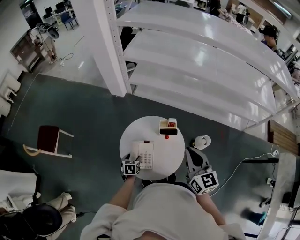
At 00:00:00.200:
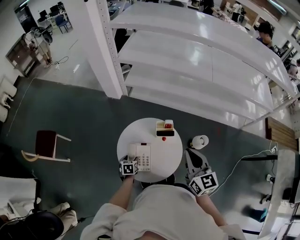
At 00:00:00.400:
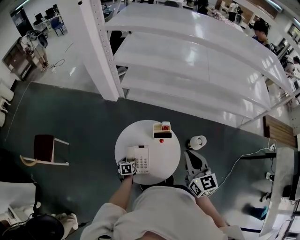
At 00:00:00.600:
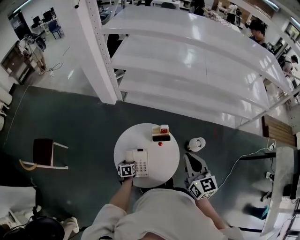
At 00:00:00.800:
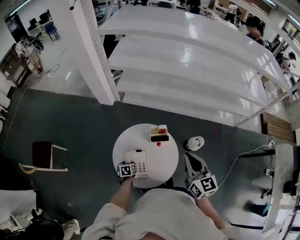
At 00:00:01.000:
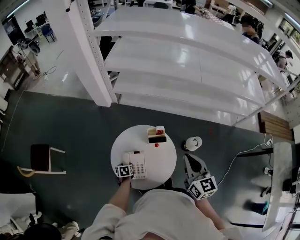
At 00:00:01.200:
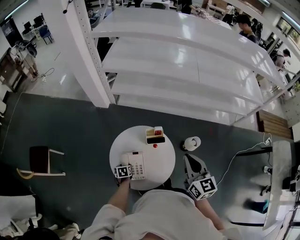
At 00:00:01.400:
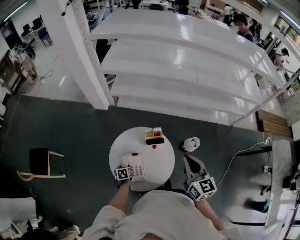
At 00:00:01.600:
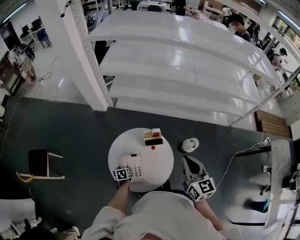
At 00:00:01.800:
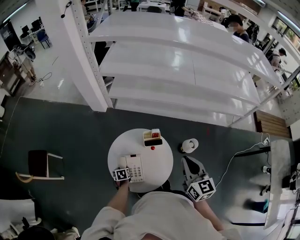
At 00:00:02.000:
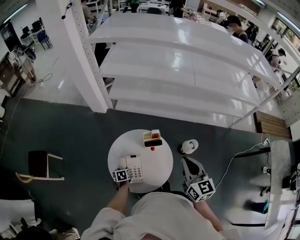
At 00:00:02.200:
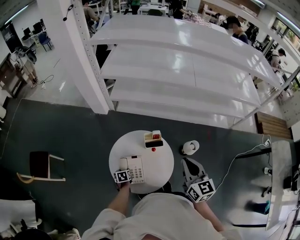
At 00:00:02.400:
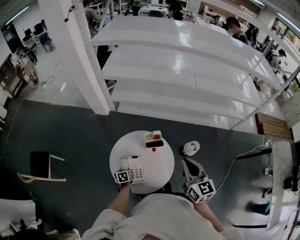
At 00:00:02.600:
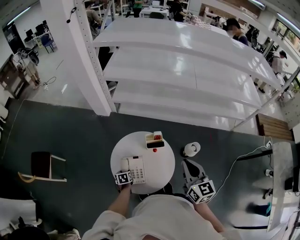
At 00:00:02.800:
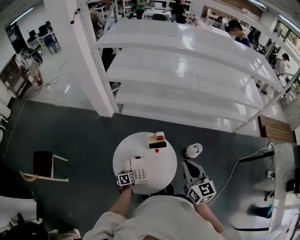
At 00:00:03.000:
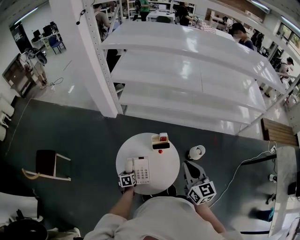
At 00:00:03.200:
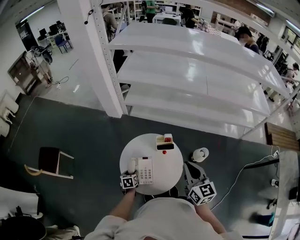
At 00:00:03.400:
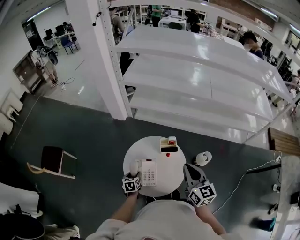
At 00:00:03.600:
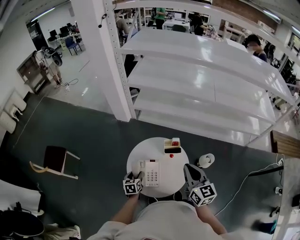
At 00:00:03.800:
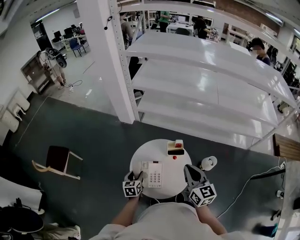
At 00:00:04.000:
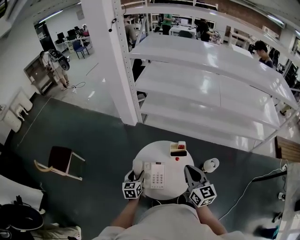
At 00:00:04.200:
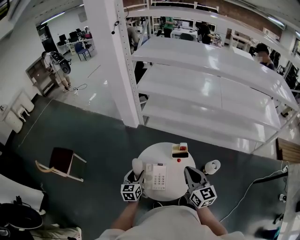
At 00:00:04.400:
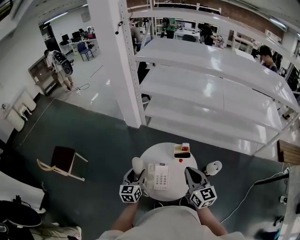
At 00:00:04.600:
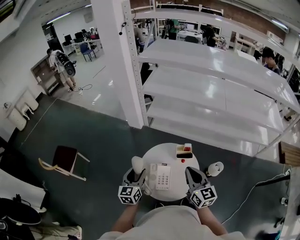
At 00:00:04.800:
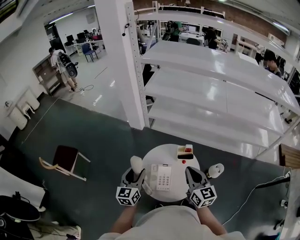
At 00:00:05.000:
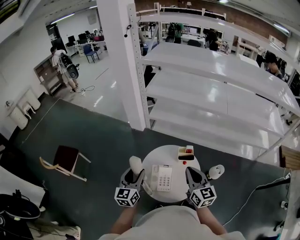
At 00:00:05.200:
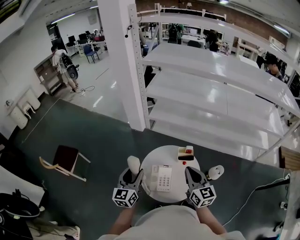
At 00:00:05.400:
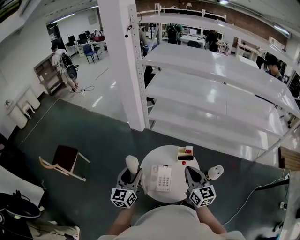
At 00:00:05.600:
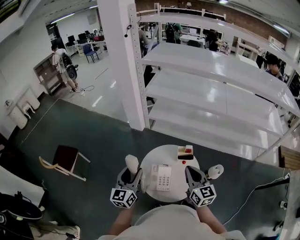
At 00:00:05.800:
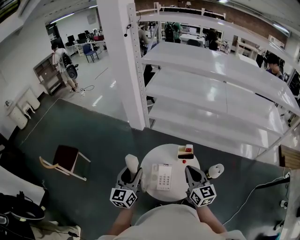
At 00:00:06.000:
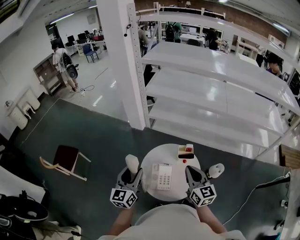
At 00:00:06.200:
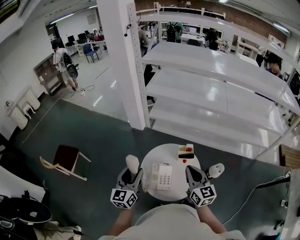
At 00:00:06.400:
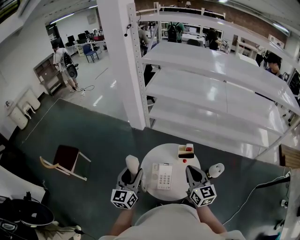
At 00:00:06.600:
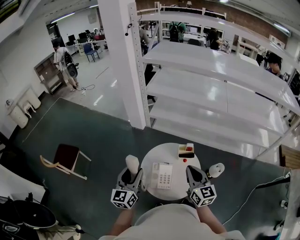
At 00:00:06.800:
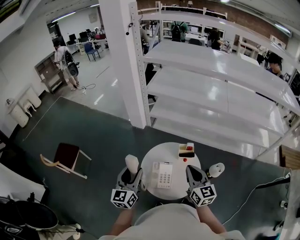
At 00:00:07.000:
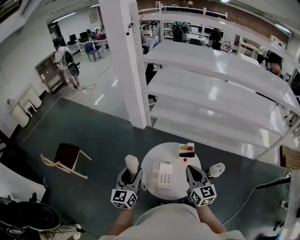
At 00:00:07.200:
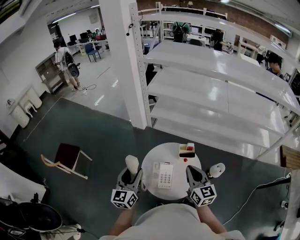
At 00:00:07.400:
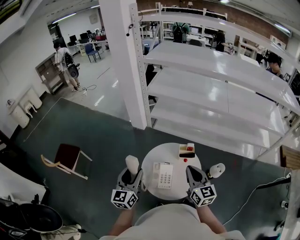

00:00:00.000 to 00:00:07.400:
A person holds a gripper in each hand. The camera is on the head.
00:00:00.000 to 00:00:01.400: The left gripper goes about 5 cm downward; the right gripper goes some 5 cm to the right.
00:00:01.400 to 00:00:03.000: The grippers move only a little.
00:00:03.000 to 00:00:04.400: The left gripper travels upward by about 25 cm, and tips its fingers upward by about 40 degrees, while the right gripper heads to the left, covering some 10 cm.
00:00:04.400 to 00:00:06.000: The left gripper heads upward, covering roughly 15 cm.
00:00:06.000 to 00:00:07.400: The grippers stay close to where they were, moving slightly.

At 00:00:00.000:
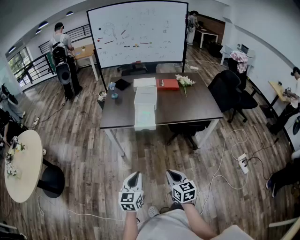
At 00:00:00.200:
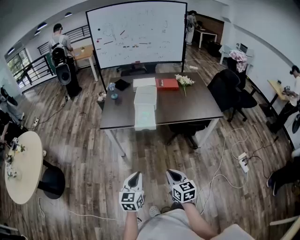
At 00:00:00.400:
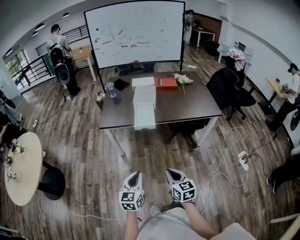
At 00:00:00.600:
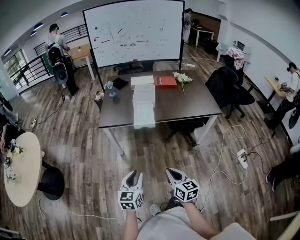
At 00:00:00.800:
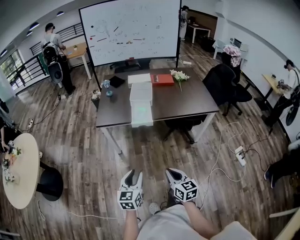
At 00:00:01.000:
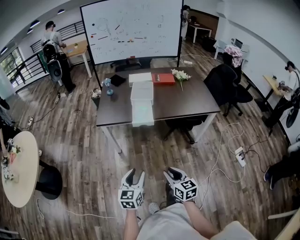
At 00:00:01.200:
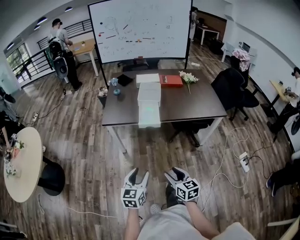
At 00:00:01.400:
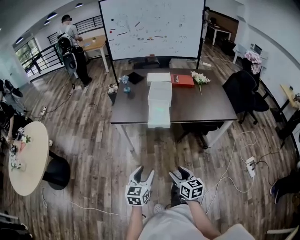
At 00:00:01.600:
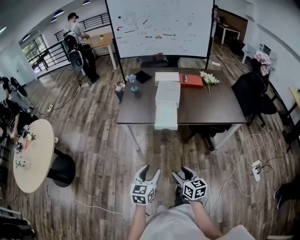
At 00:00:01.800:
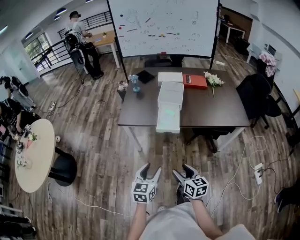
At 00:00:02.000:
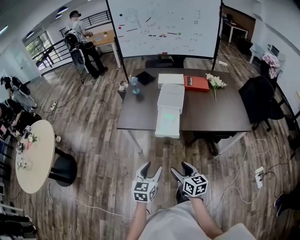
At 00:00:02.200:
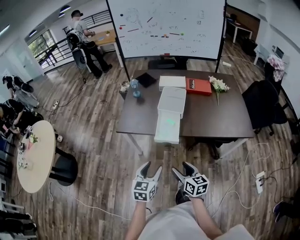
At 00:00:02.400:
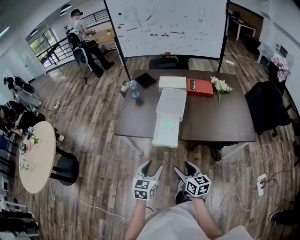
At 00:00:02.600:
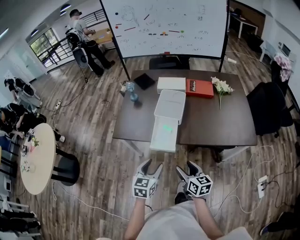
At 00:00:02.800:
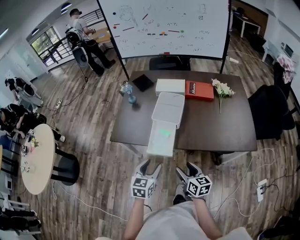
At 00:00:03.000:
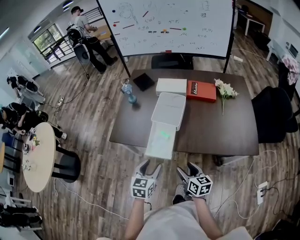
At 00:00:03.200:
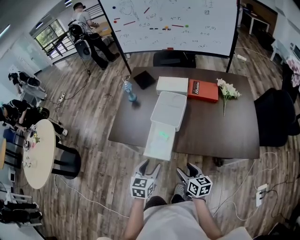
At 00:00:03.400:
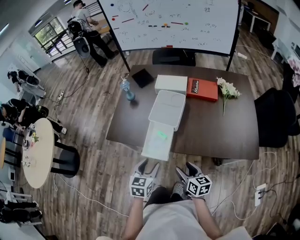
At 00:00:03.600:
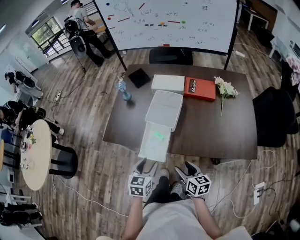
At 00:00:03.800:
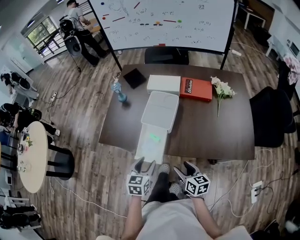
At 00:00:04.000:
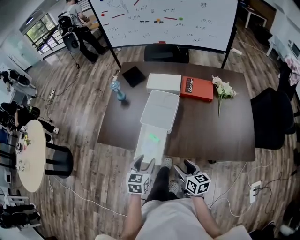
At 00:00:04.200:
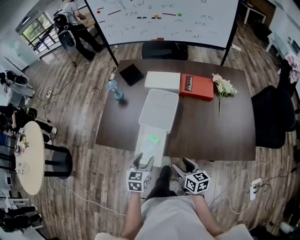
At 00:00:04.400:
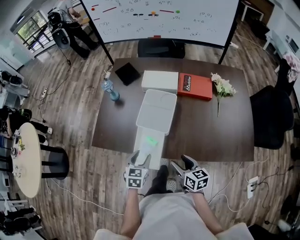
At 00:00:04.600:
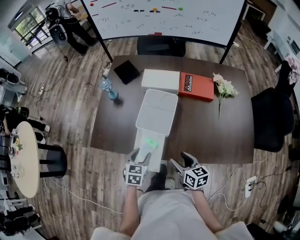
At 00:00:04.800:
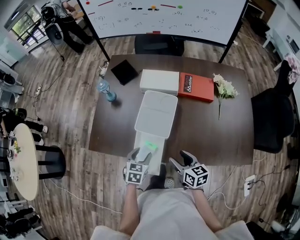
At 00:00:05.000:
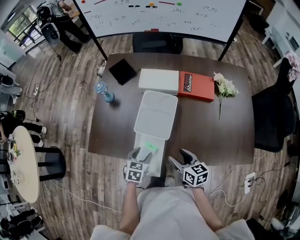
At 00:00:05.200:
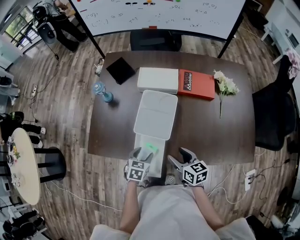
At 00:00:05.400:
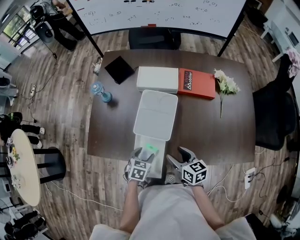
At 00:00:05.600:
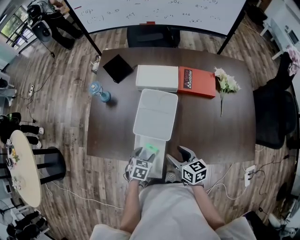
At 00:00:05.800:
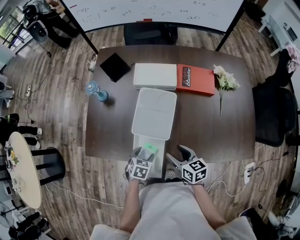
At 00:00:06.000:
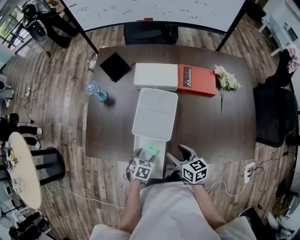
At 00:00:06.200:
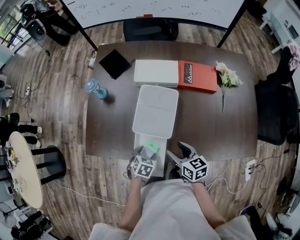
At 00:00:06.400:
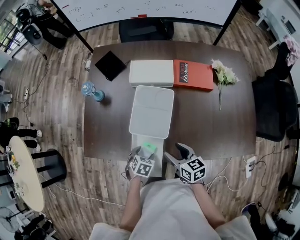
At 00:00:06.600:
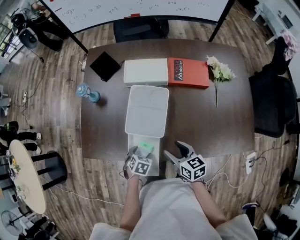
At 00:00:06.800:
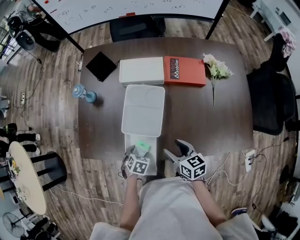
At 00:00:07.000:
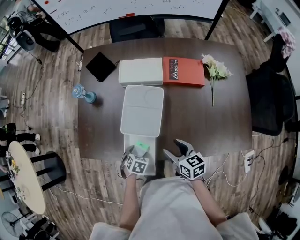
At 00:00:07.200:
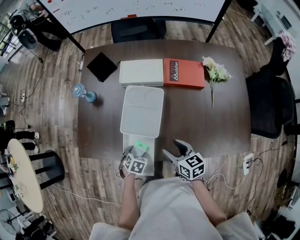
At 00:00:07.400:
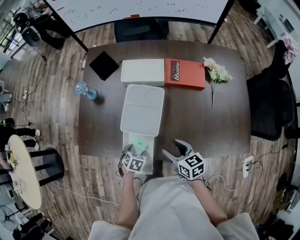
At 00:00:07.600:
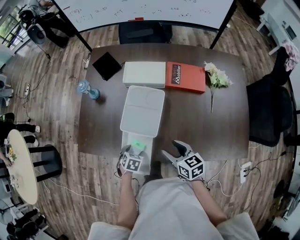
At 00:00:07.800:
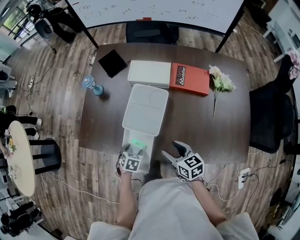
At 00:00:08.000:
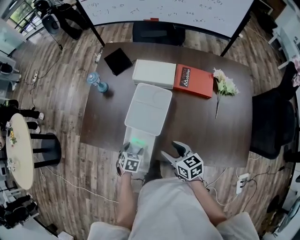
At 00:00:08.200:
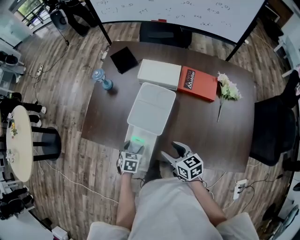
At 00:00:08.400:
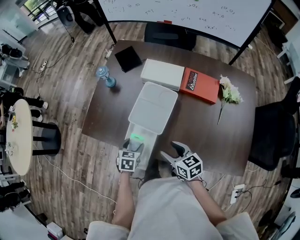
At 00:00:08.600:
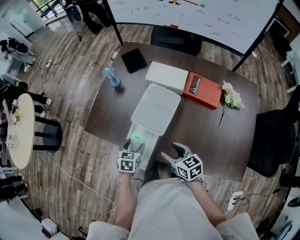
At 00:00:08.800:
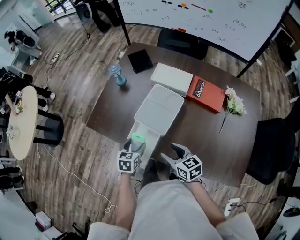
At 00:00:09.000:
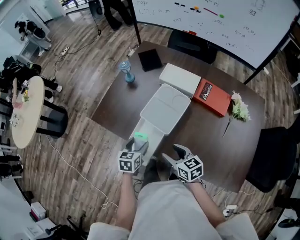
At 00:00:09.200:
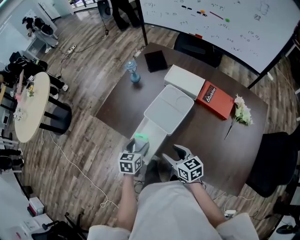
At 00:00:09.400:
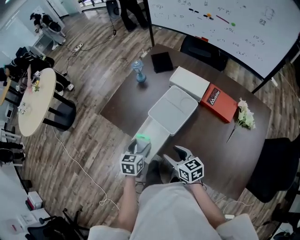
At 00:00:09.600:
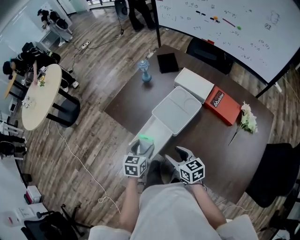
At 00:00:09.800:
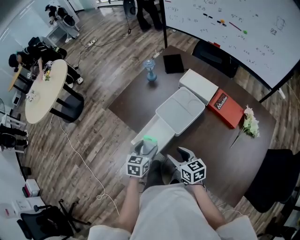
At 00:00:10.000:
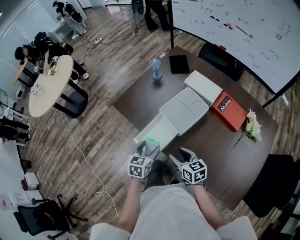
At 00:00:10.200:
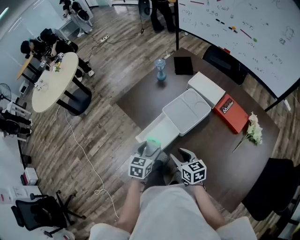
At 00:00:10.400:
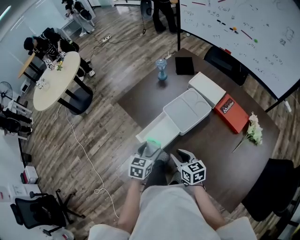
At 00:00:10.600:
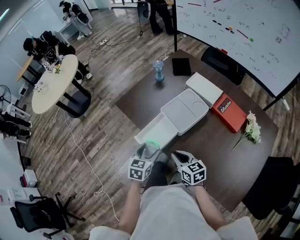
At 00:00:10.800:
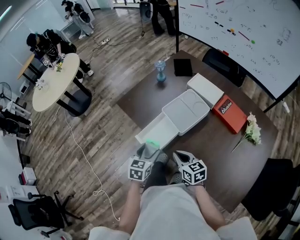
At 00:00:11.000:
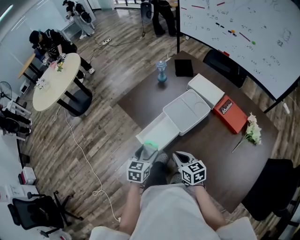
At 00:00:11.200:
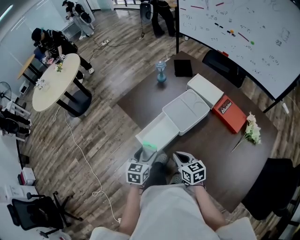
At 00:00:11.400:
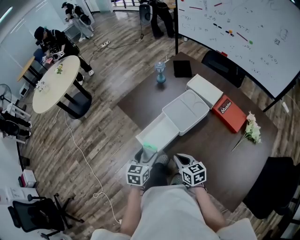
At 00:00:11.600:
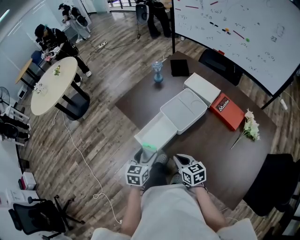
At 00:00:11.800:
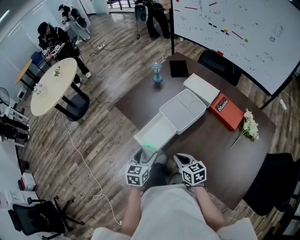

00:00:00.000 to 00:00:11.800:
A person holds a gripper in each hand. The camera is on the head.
00:00:00.000 to 00:00:01.400: The right gripper moves roughly 5 cm, and opens. Meanwhile the left gripper ends up approximately 5 cm from where it was, and opens up.
00:00:01.400 to 00:00:03.000: Both grippers move forward and to the right, approximately 35 cm.
00:00:03.000 to 00:00:04.400: The left gripper is displaced forward and downward by some 15 cm; the right gripper is displaced forward by roughly 10 cm.
00:00:04.400 to 00:00:06.000: The right gripper travels forward by some 10 cm; the left gripper shifts roughly 15 cm downward and forward, and turns by roughly 30 degrees.
00:00:06.000 to 00:00:07.400: The grippers stay close to where they were, moving slightly.
00:00:07.400 to 00:00:08.800: The left gripper goes roughly 10 cm upward, and turns by roughly 40 degrees. Meanwhile the right gripper turns by about 20 degrees.
00:00:08.800 to 00:00:10.400: The left gripper shifts about 10 cm backward and upward. Meanwhile the right gripper travels backward by roughly 5 cm, and closes its fingers.
00:00:10.400 to 00:00:11.800: The right gripper closes up.

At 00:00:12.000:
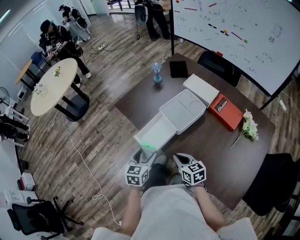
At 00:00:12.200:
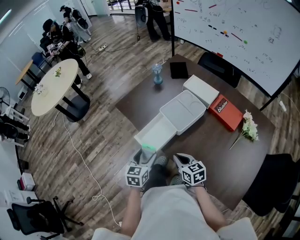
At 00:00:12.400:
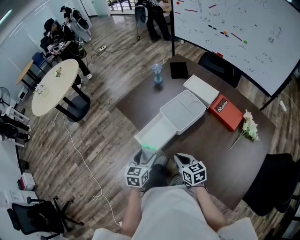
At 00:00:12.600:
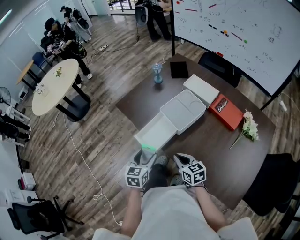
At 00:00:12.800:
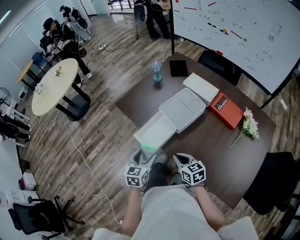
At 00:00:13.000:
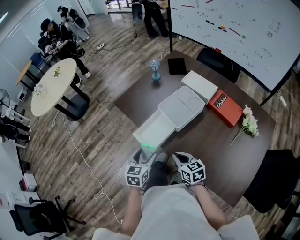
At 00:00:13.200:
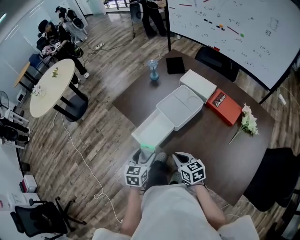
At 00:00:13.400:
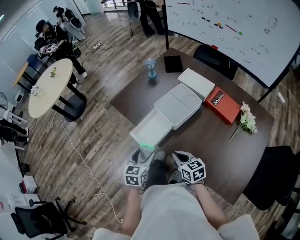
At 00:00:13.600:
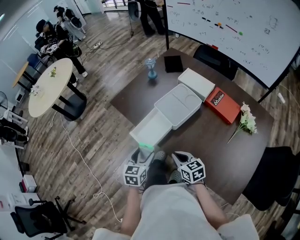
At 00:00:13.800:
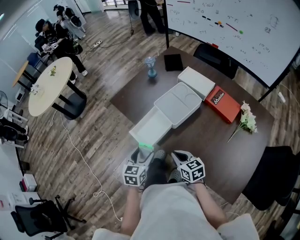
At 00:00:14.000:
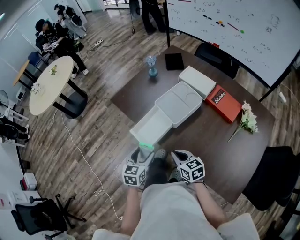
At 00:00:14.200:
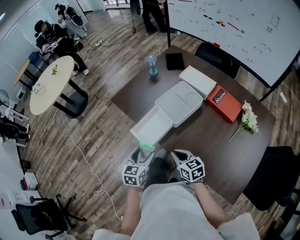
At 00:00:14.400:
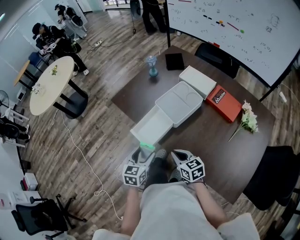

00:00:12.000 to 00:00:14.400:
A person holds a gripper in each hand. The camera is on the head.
00:00:12.000 to 00:00:13.200: The grippers stay close to where they were, moving slightly.
00:00:13.200 to 00:00:14.400: Neither gripper changes place.

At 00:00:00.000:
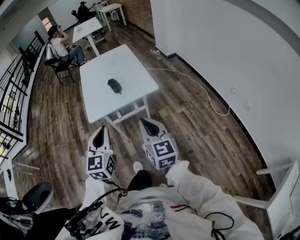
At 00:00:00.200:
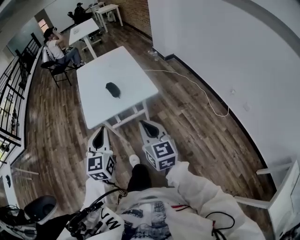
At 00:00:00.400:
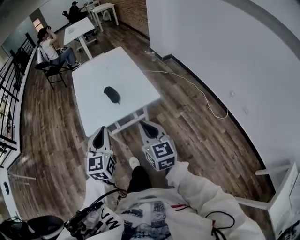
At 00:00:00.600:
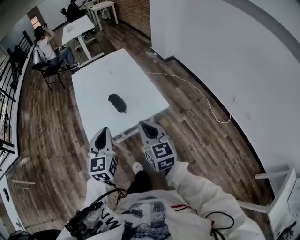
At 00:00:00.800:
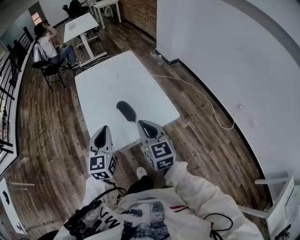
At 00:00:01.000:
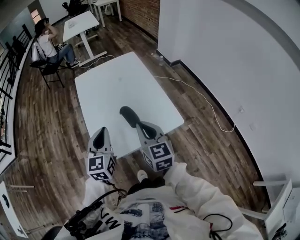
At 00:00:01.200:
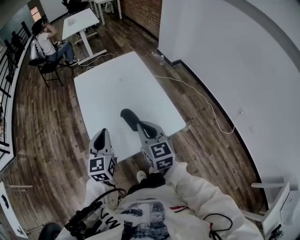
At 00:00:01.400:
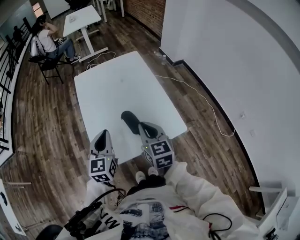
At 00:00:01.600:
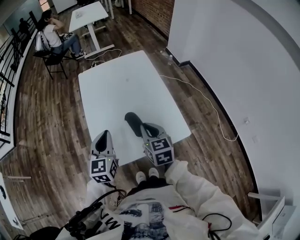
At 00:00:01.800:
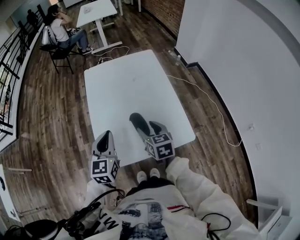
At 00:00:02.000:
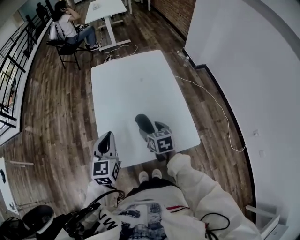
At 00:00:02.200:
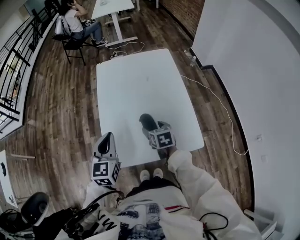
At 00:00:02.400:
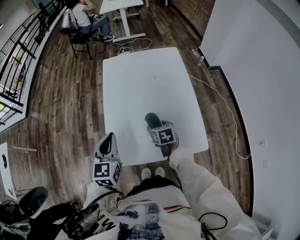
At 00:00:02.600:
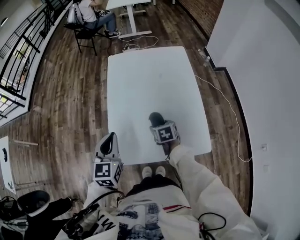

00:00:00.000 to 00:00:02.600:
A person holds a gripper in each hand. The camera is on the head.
00:00:00.000 to 00:00:01.200: The grippers both shift forward by roughly 35 cm.
00:00:01.200 to 00:00:02.600: The left gripper shifts roughly 5 cm to the left. Meanwhile the right gripper goes approximately 30 cm downward and forward, tilts its fingers some 40 degrees downward, and opens.
